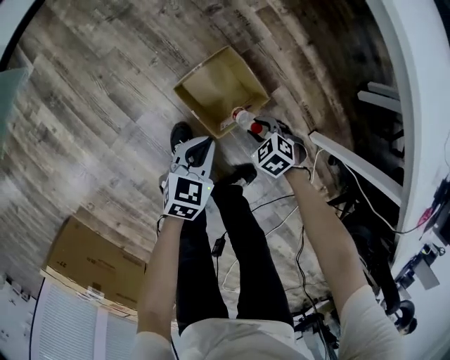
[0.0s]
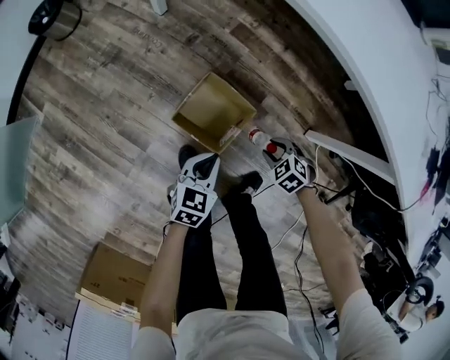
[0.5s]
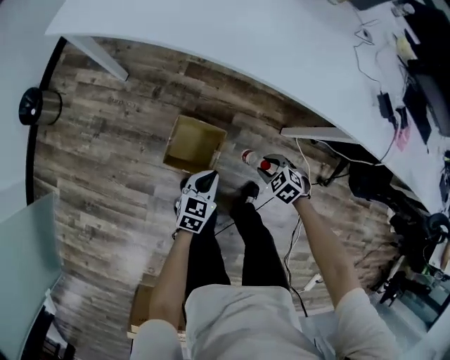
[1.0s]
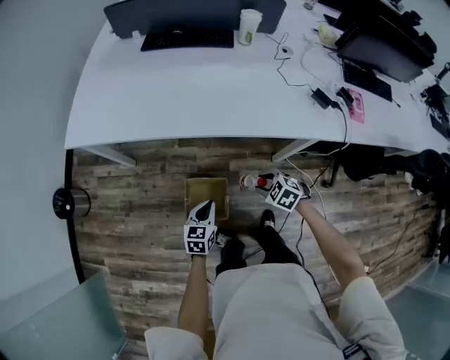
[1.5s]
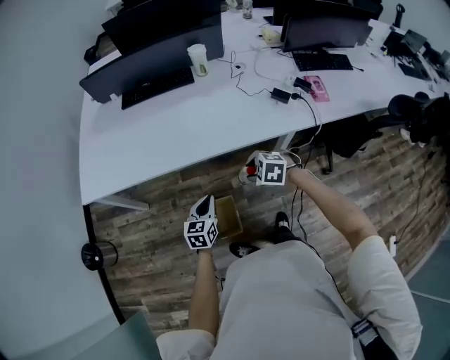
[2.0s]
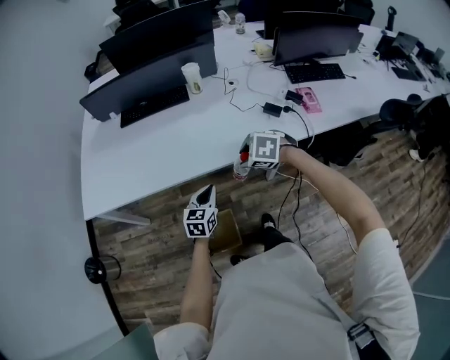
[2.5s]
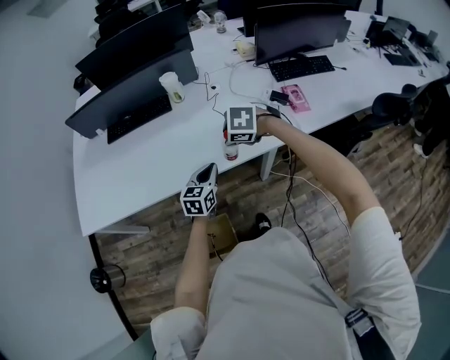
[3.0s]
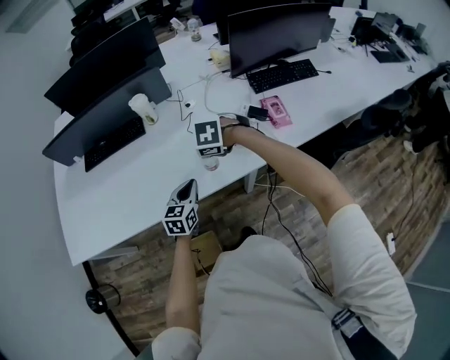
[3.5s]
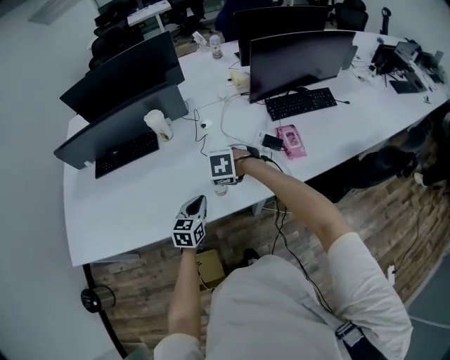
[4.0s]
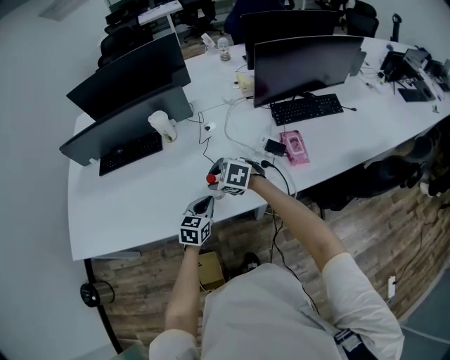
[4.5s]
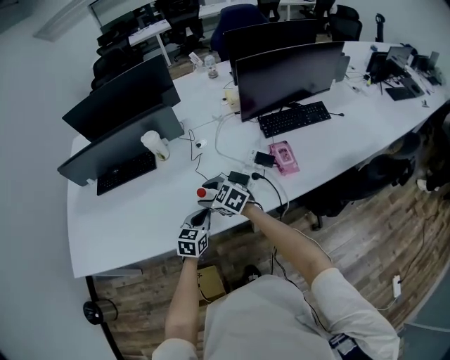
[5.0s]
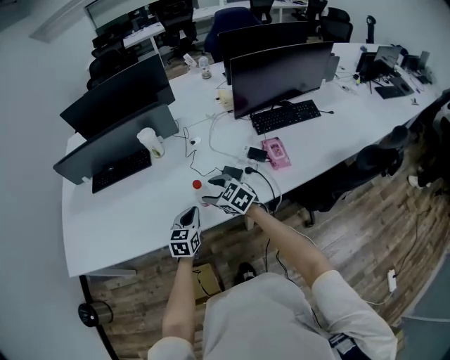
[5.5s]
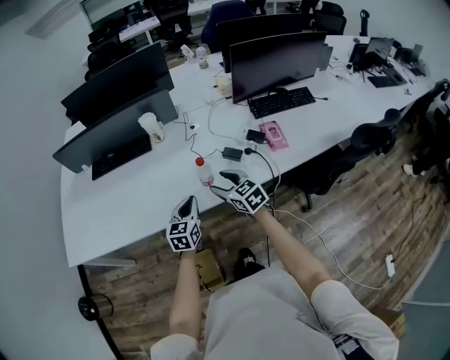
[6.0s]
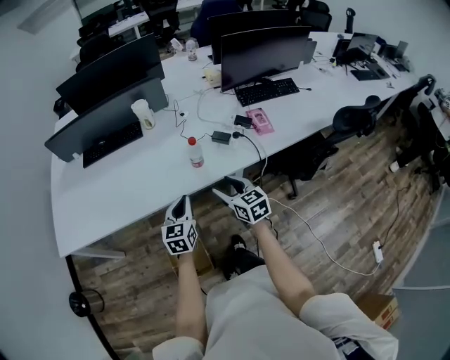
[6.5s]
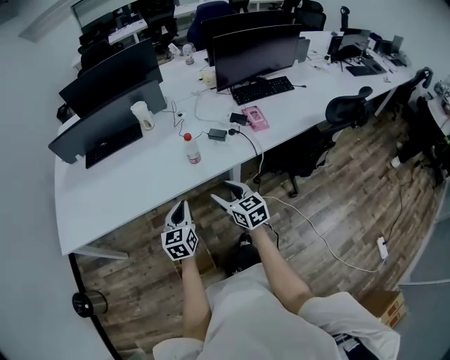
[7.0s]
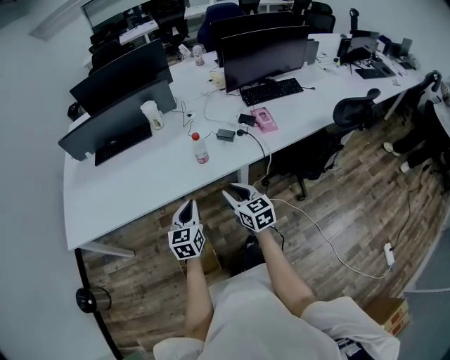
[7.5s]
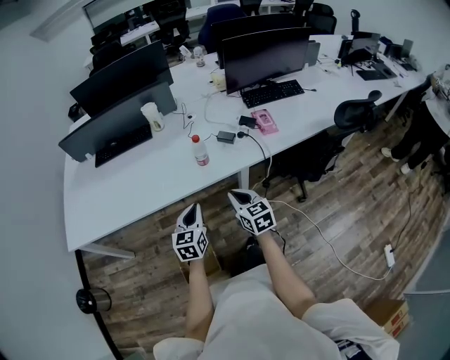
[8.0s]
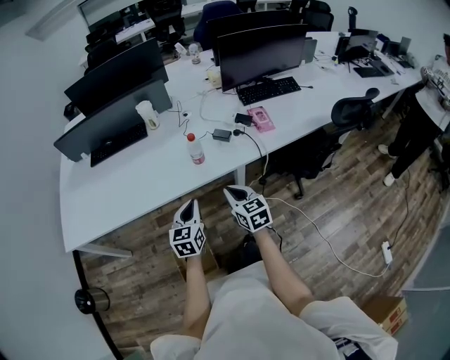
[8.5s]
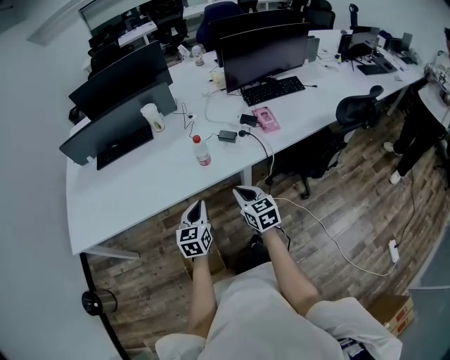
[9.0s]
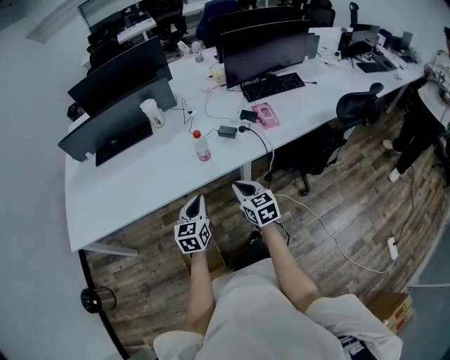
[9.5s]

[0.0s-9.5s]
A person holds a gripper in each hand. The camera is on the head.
0.0s to 2.0s: The two grippers go about 50 cm upward. The left gripper rotates about 40 degrees. The right gripper turns by about 40 degrees.
2.0s to 4.0s: The right gripper goes about 30 cm forward and to the right; the left gripper travels to the right and forward by approximately 35 cm.
4.0s to 5.5s: The right gripper points its fingers some 40 degrees further upward.
5.5s to 7.5s: The two grippers go about 25 cm backward. The right gripper turns by approximately 30 degrees, and closes.
7.5s to 9.5s: The right gripper closes up.

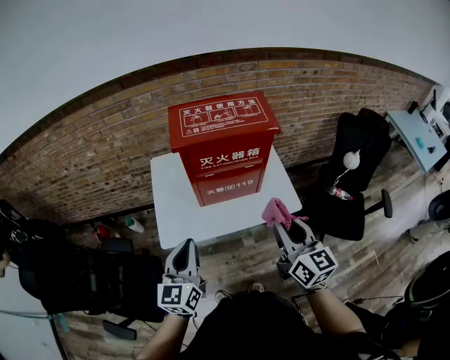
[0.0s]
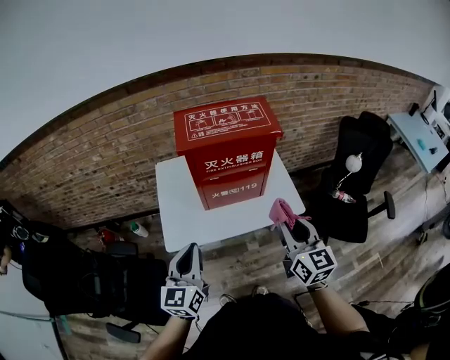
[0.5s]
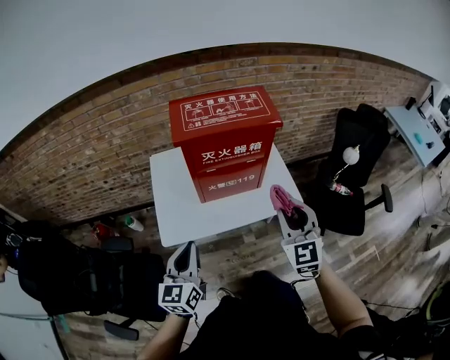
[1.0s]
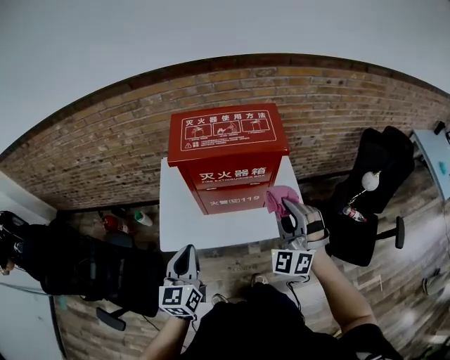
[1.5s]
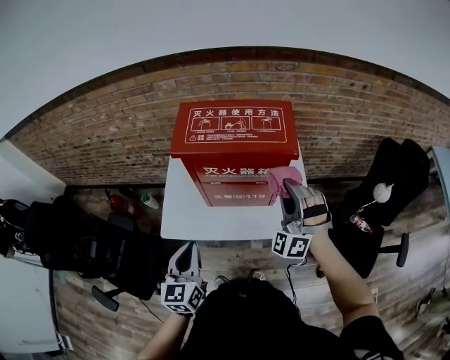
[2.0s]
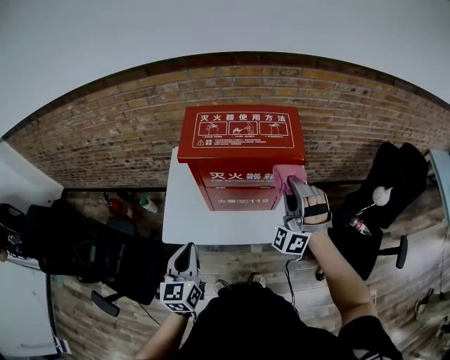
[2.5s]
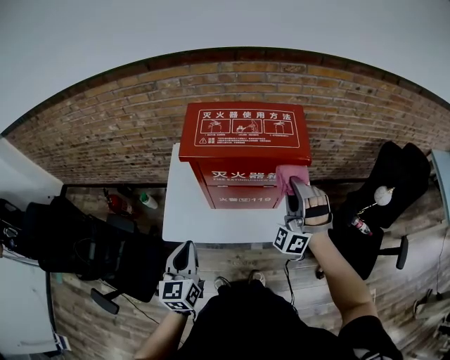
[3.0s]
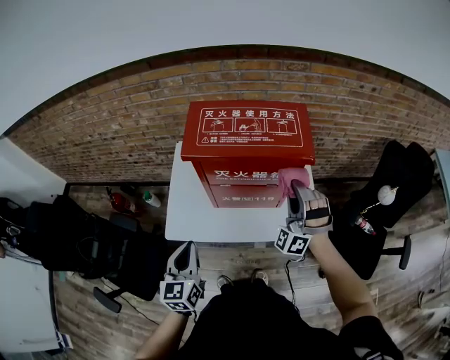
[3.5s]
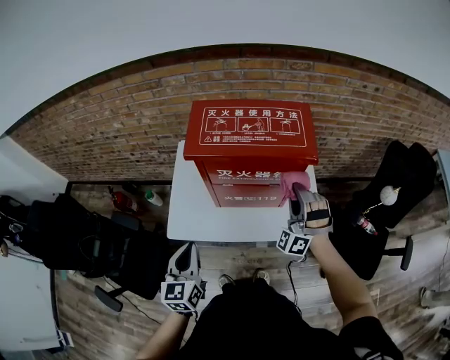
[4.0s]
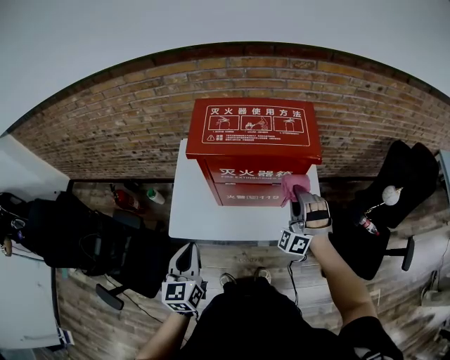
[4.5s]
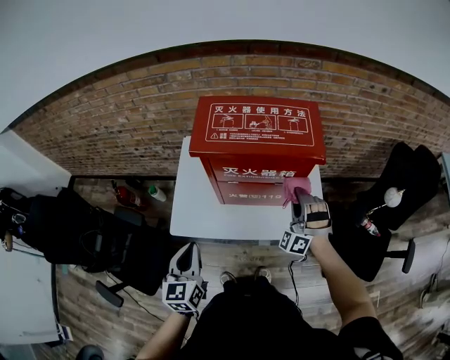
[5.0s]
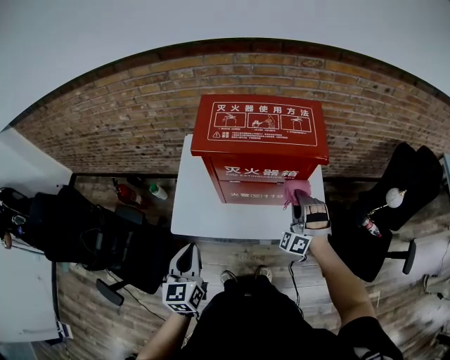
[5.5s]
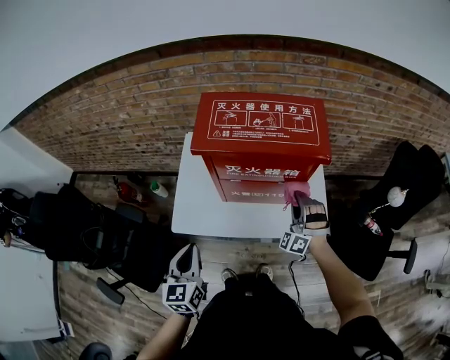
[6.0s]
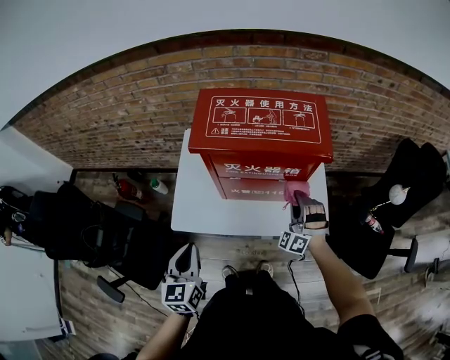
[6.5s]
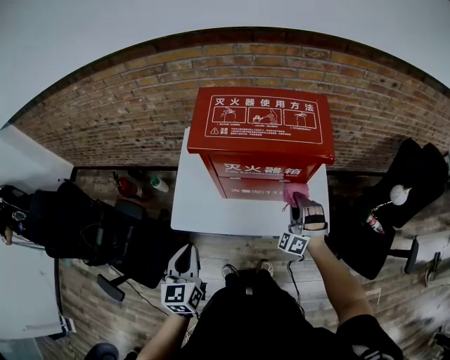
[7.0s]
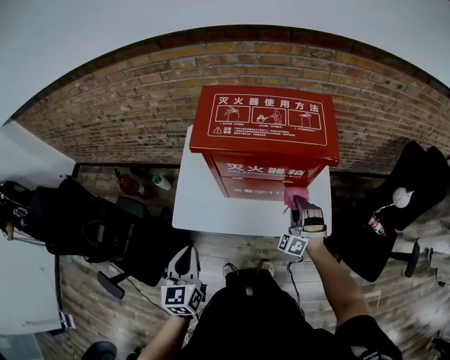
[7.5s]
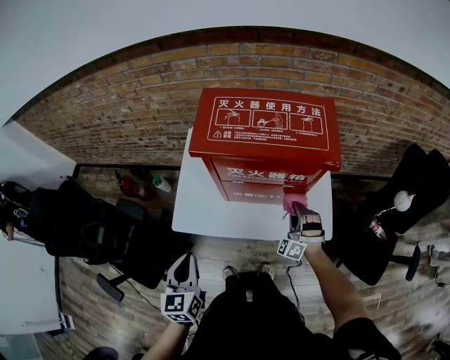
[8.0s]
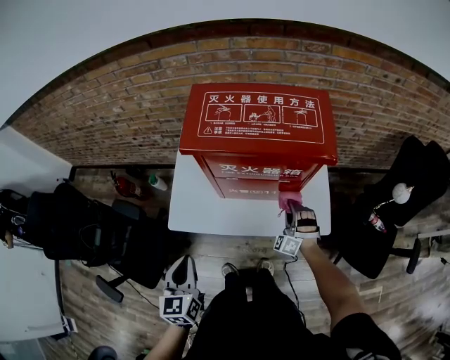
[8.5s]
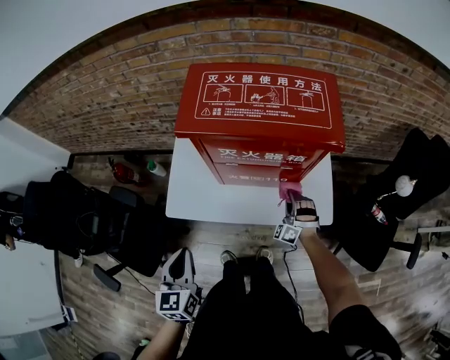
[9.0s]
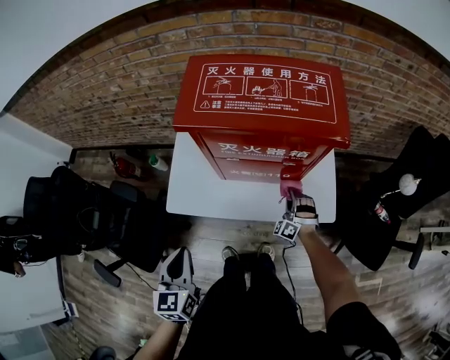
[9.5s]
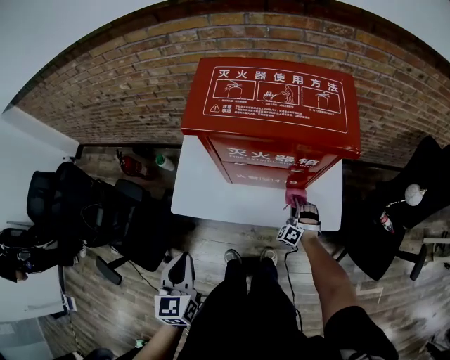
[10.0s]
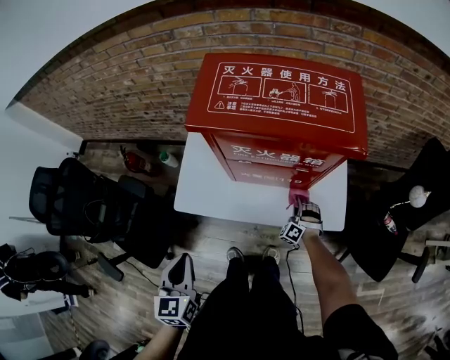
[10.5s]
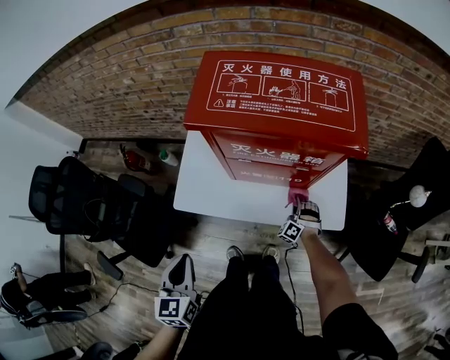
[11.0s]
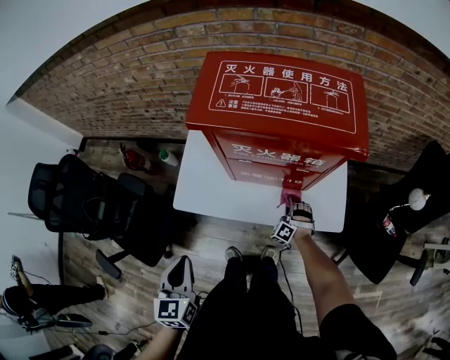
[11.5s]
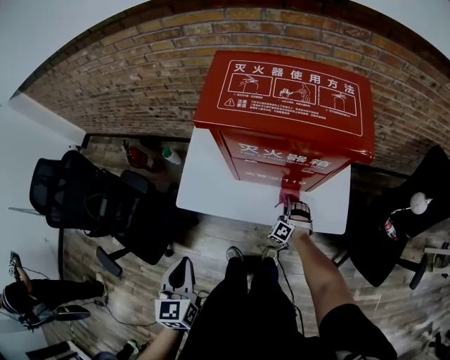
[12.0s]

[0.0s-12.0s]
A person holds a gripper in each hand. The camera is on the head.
0.0s to 2.0s: The left gripper changes place by about 10 cm.
2.0s to 4.0s: The left gripper shifts by roughly 5 cm.

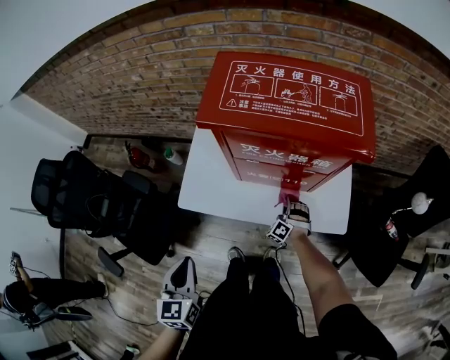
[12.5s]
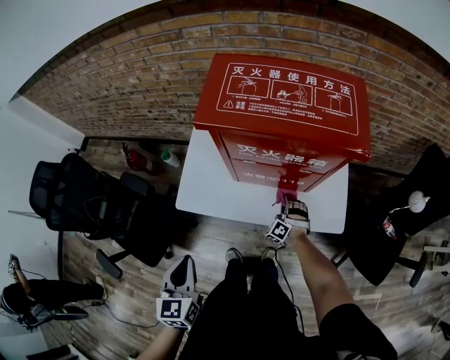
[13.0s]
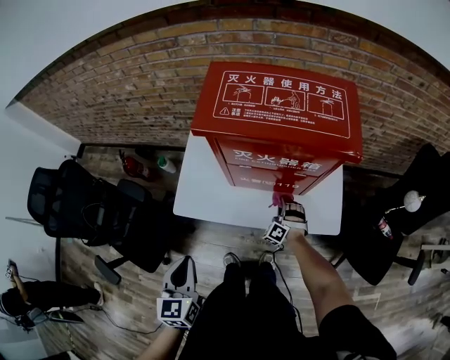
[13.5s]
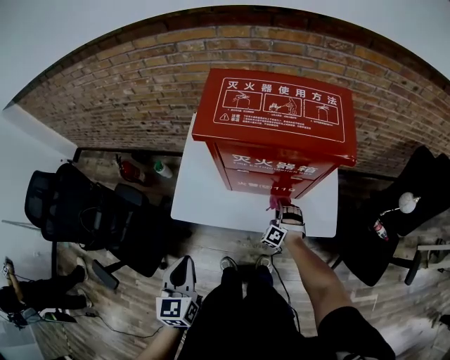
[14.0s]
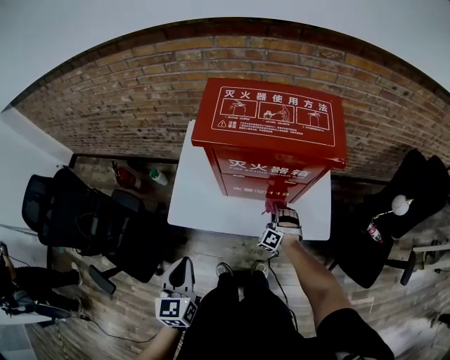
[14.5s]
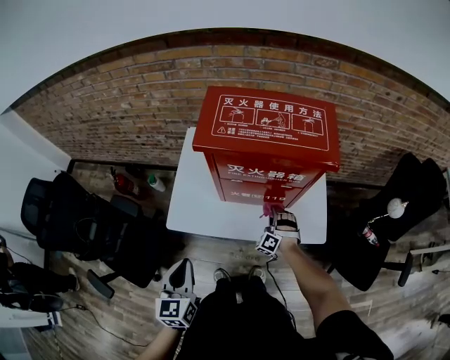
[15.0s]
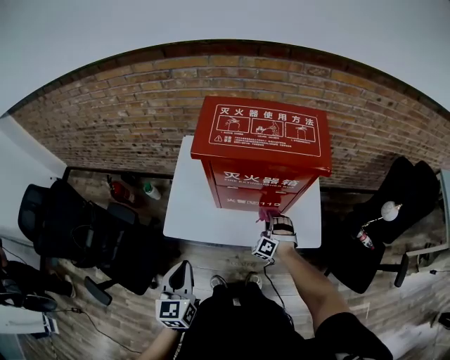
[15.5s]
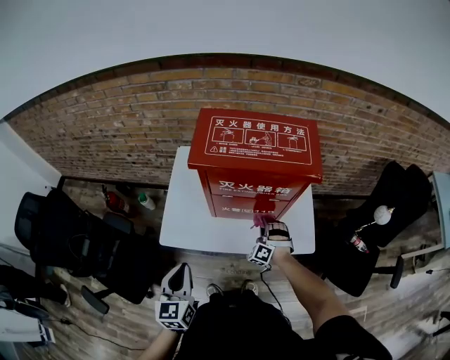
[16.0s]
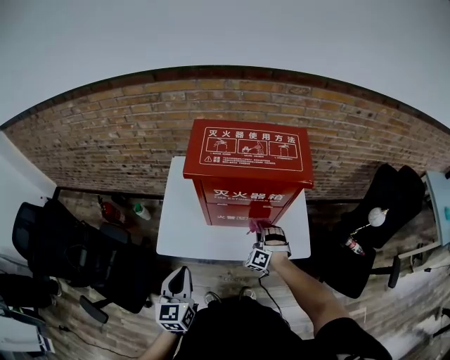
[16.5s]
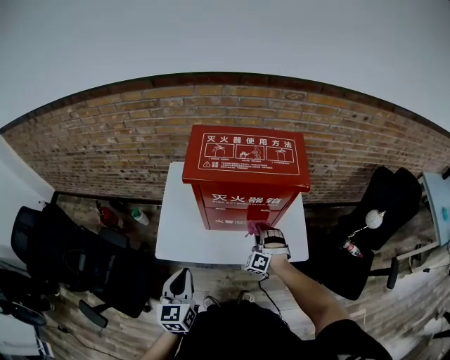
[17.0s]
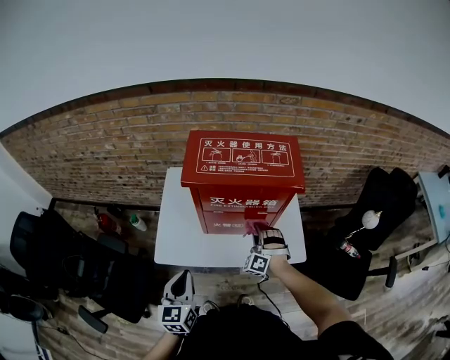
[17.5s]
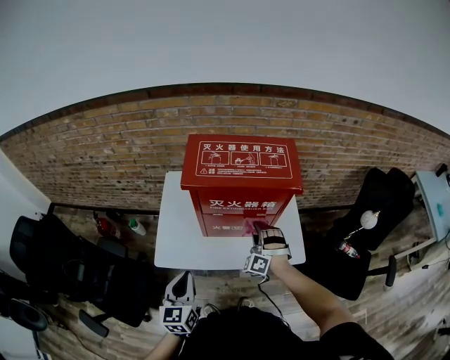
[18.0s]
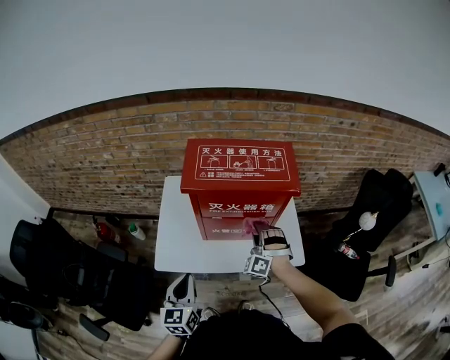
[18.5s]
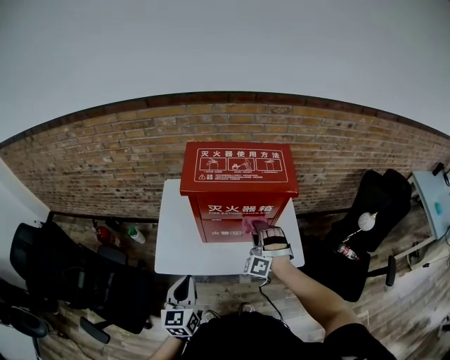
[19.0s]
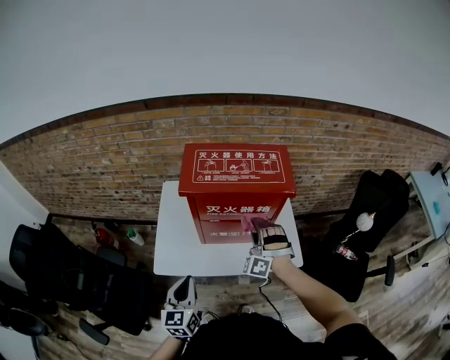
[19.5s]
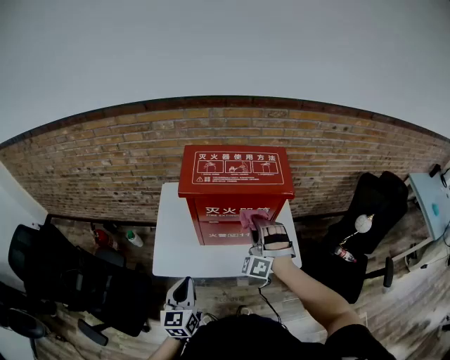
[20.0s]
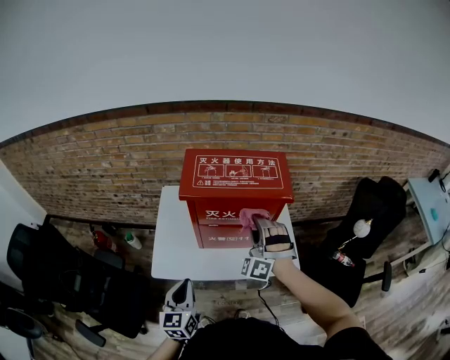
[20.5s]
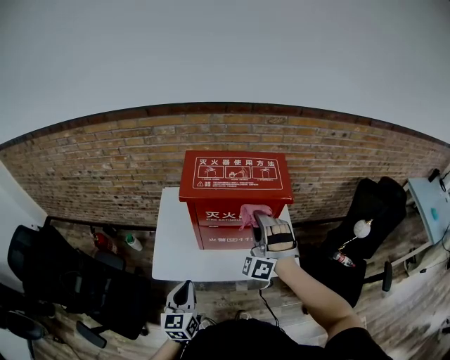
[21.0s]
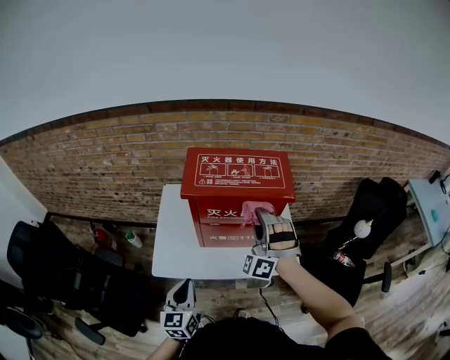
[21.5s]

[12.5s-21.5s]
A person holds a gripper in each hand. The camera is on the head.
14.5s to 17.0s: The left gripper moves roughly 5 cm.
